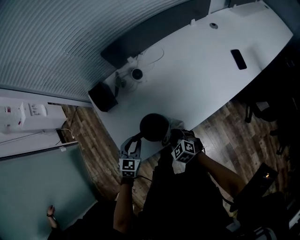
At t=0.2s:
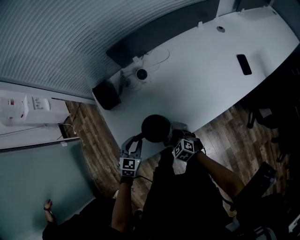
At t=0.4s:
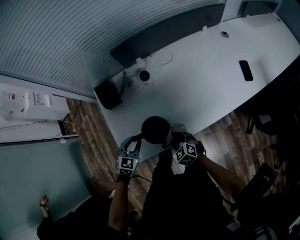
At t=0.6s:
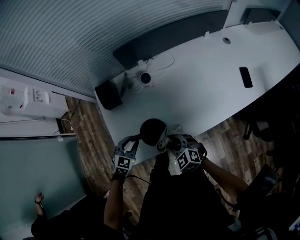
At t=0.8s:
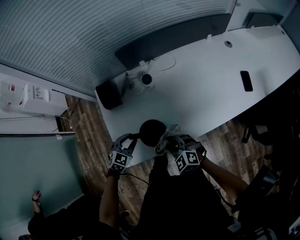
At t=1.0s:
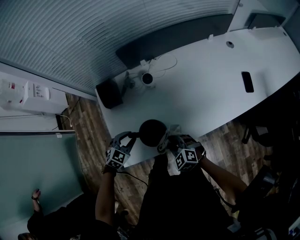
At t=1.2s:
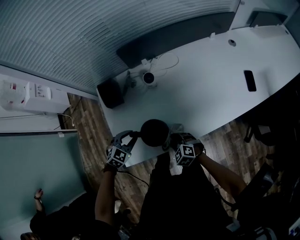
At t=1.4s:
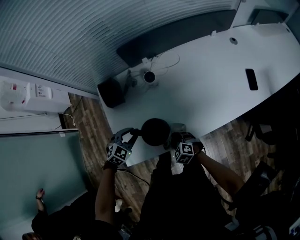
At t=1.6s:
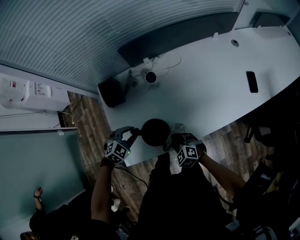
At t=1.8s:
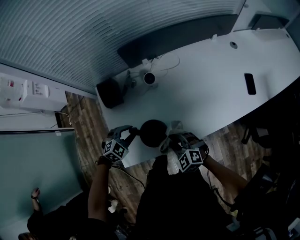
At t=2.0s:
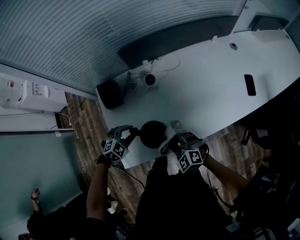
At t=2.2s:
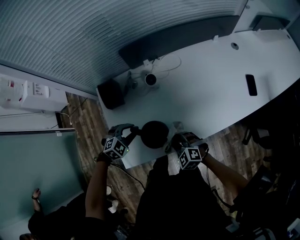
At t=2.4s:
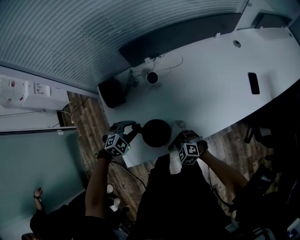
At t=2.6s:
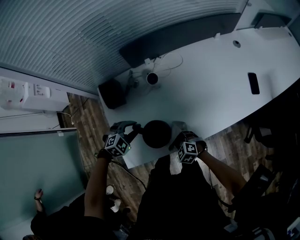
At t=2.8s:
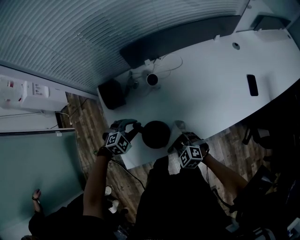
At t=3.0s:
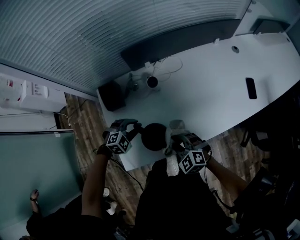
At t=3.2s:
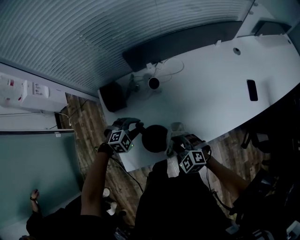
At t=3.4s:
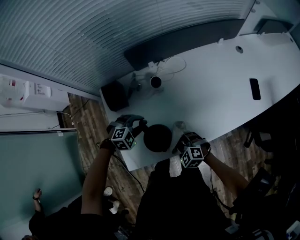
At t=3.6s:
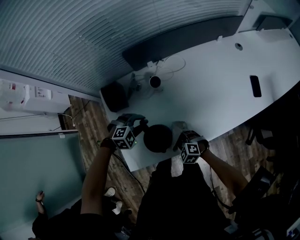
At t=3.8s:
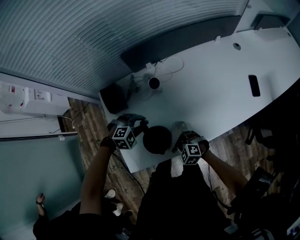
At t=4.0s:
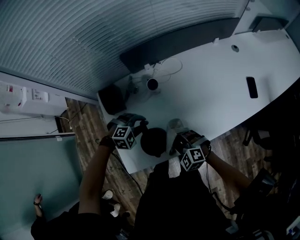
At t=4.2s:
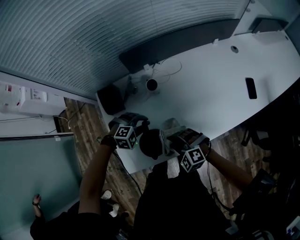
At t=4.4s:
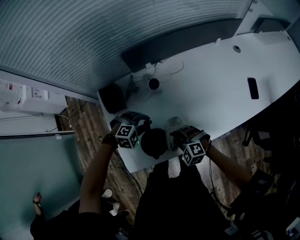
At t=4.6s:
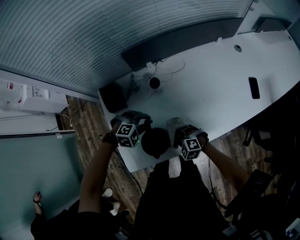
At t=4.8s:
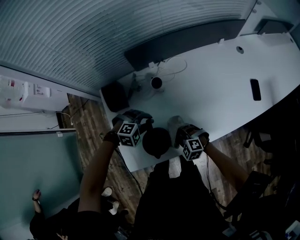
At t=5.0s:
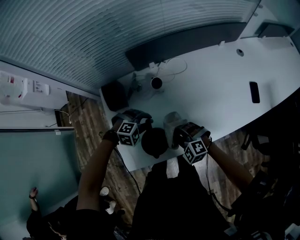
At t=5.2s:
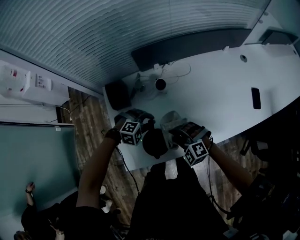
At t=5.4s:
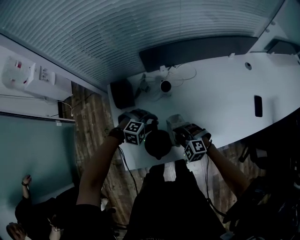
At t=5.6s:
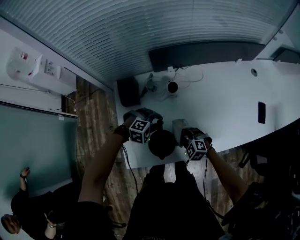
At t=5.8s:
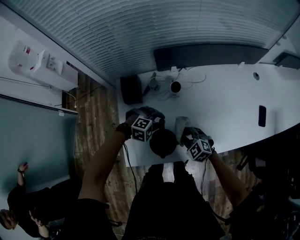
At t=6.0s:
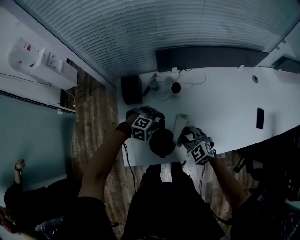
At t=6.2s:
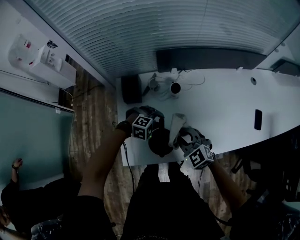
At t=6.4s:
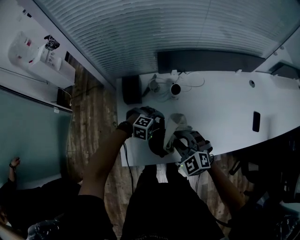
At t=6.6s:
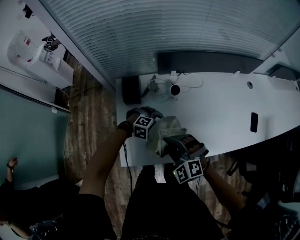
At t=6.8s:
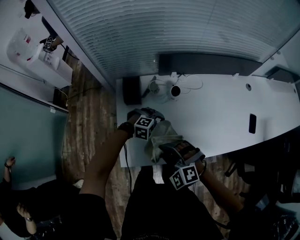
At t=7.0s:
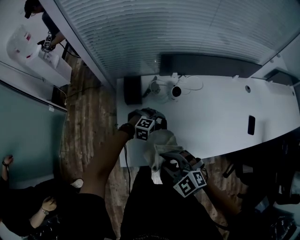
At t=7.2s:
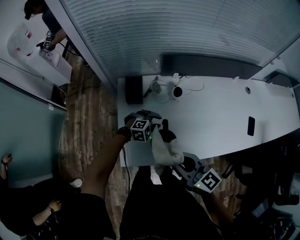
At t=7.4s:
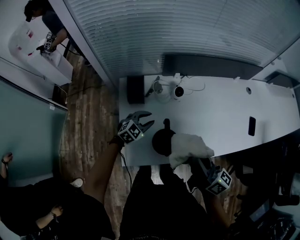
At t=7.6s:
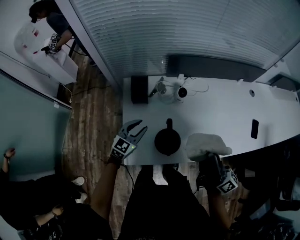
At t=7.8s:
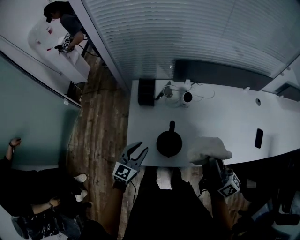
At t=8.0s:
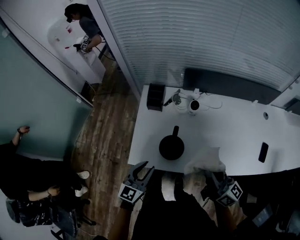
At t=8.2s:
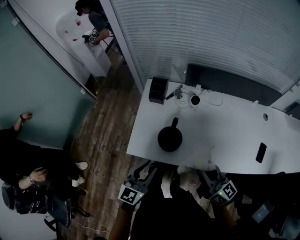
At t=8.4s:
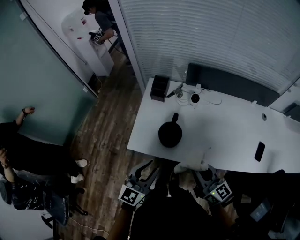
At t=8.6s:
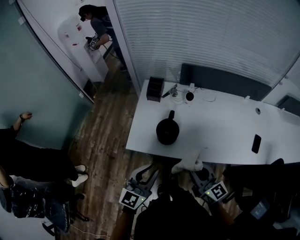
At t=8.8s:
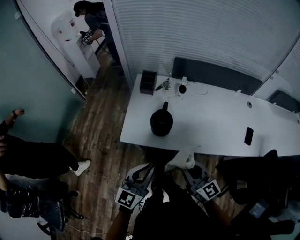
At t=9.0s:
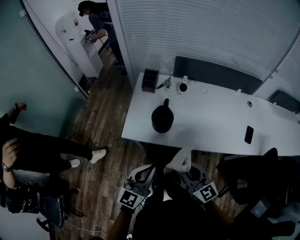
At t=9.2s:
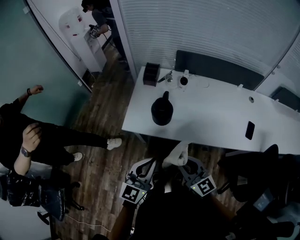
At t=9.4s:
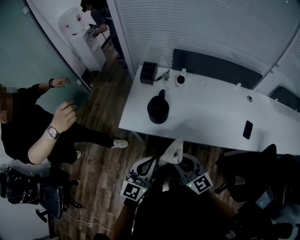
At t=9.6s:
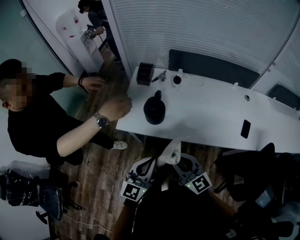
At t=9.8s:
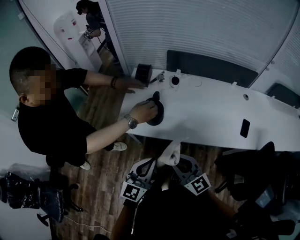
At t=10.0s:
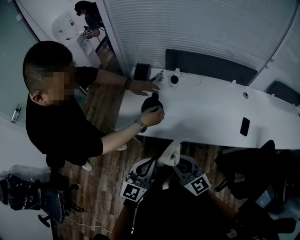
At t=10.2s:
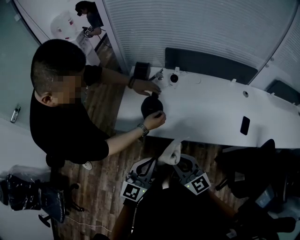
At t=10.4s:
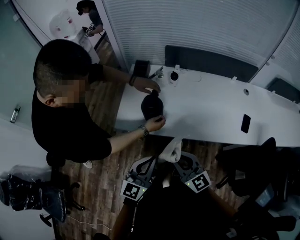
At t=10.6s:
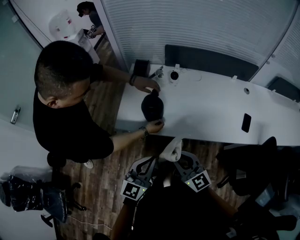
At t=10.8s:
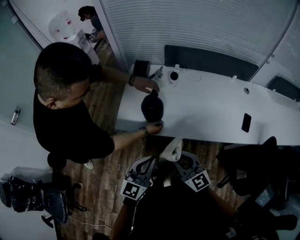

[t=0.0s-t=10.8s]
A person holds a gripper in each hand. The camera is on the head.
t=0.0s to t=1.6s: The right gripper swings up and down, roughly 10 cm each way, with 2 reversals; the left gripper travels forward by about 5 cm, and changes its angle by about 30 degrees.
t=1.6s to t=3.0s: The right gripper moves up and down over approximately 10 cm, changing direction 2 times. The left gripper ends up roughly 5 cm from where it was.
t=3.0s to t=4.6s: The right gripper moves up and down over about 15 cm, changing direction 2 times.
t=4.6s to t=6.2s: The right gripper swings up and down, approximately 15 cm each way, with 2 reversals, and changes its angle by about 30 degrees.
t=6.2s to t=7.8s: The left gripper moves approximately 20 cm, and tips its fingers upward by some 40 degrees, while the right gripper heads upward, covering approximately 15 cm, and points its fingers roughly 50 degrees further upward.
t=7.8s to t=9.2s: The left gripper shifts roughly 35 cm backward and upward, rotates approximately 20 degrees, and closes; the right gripper heads backward, covering approximately 25 cm, and turns by some 50 degrees.
t=9.2s to t=10.8s: The grippers make only small movements.

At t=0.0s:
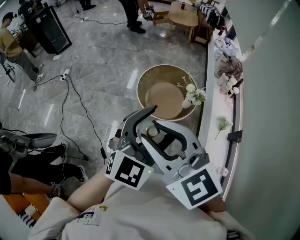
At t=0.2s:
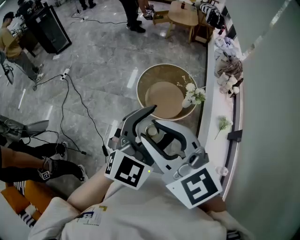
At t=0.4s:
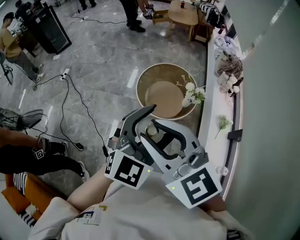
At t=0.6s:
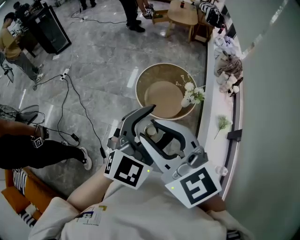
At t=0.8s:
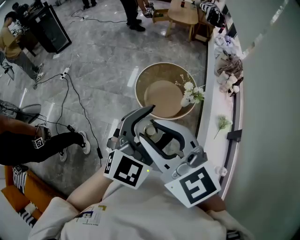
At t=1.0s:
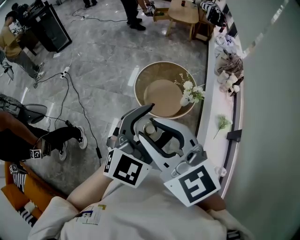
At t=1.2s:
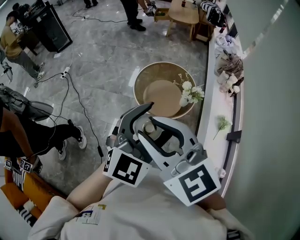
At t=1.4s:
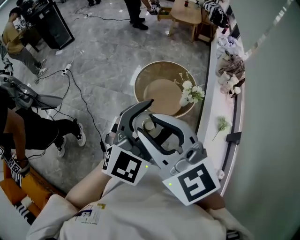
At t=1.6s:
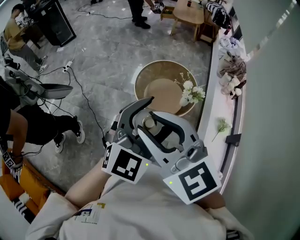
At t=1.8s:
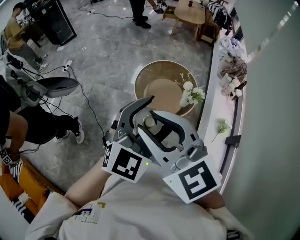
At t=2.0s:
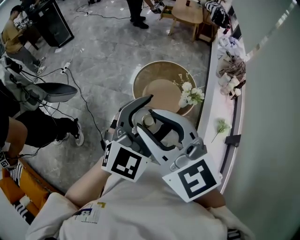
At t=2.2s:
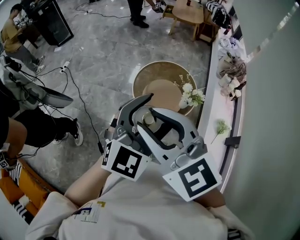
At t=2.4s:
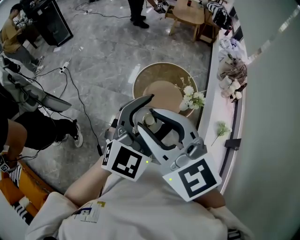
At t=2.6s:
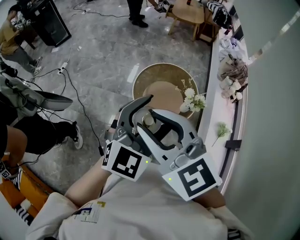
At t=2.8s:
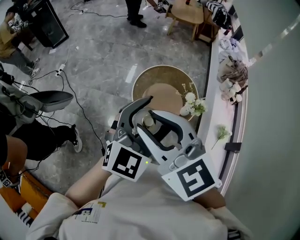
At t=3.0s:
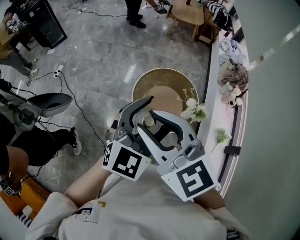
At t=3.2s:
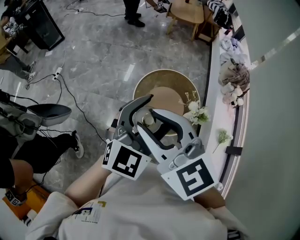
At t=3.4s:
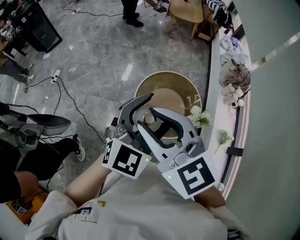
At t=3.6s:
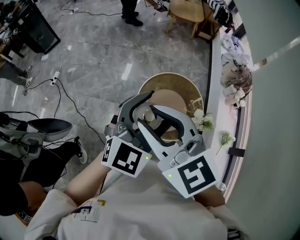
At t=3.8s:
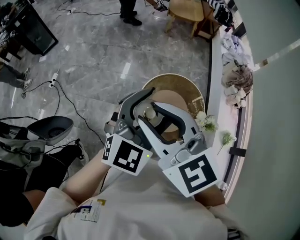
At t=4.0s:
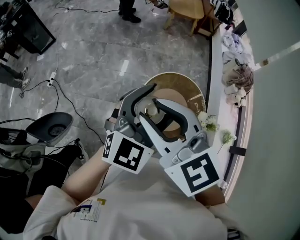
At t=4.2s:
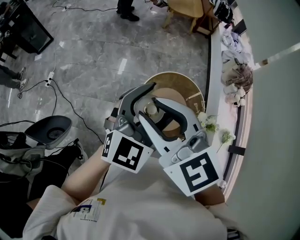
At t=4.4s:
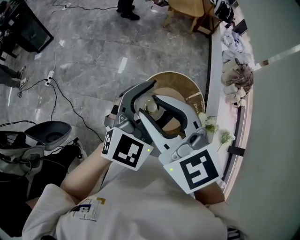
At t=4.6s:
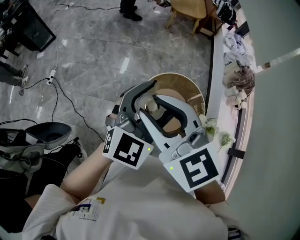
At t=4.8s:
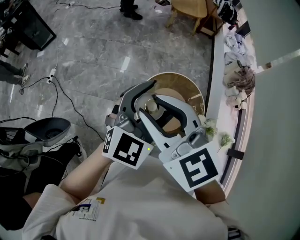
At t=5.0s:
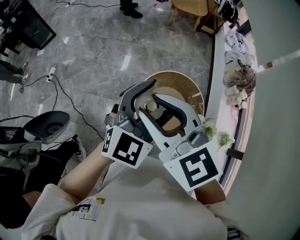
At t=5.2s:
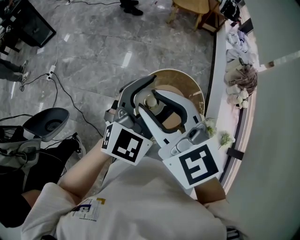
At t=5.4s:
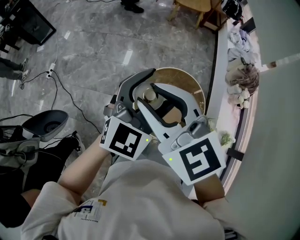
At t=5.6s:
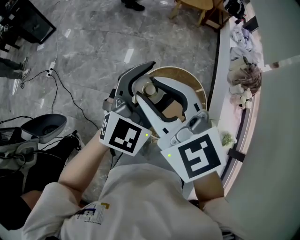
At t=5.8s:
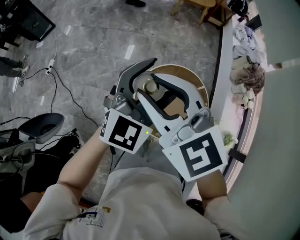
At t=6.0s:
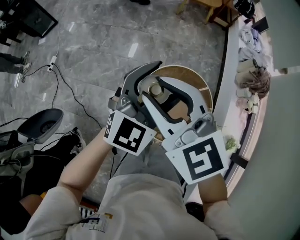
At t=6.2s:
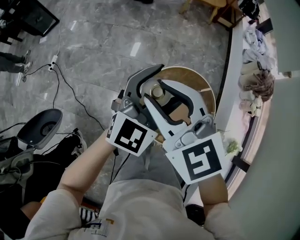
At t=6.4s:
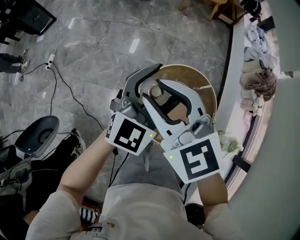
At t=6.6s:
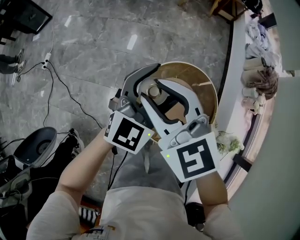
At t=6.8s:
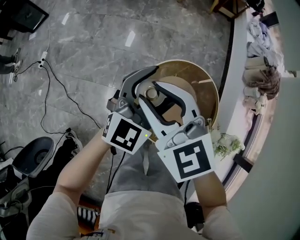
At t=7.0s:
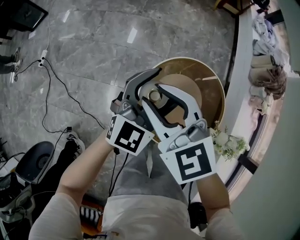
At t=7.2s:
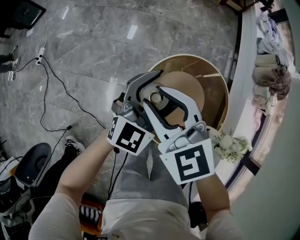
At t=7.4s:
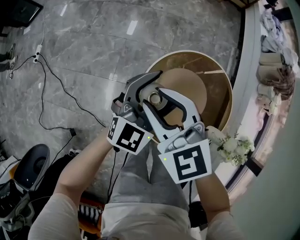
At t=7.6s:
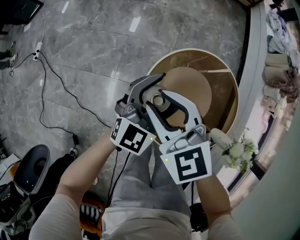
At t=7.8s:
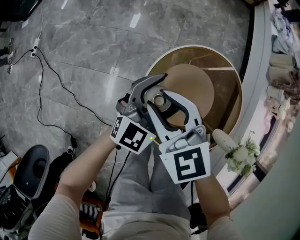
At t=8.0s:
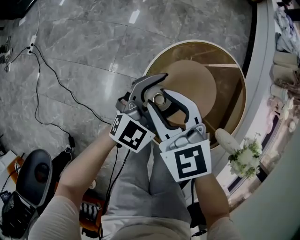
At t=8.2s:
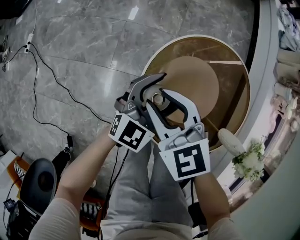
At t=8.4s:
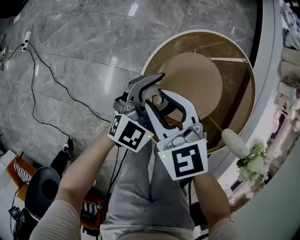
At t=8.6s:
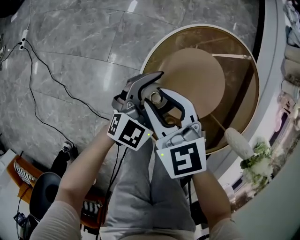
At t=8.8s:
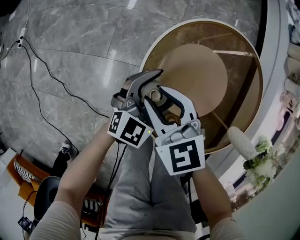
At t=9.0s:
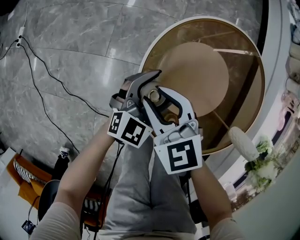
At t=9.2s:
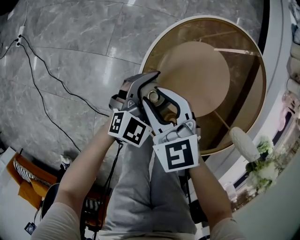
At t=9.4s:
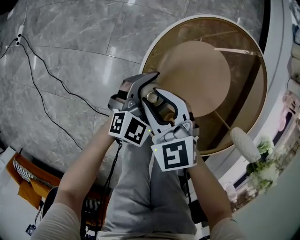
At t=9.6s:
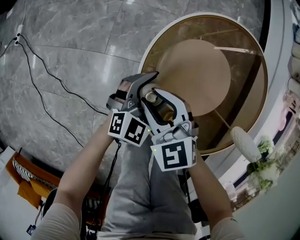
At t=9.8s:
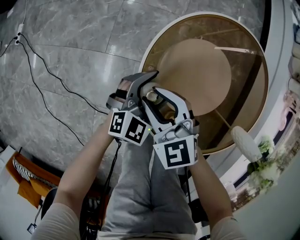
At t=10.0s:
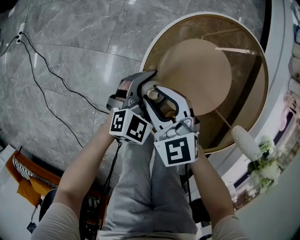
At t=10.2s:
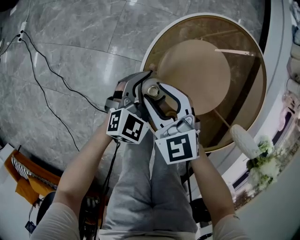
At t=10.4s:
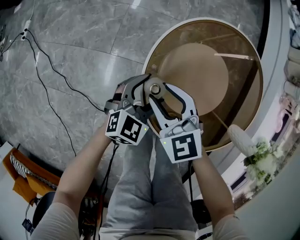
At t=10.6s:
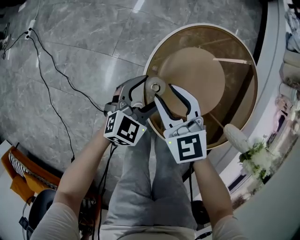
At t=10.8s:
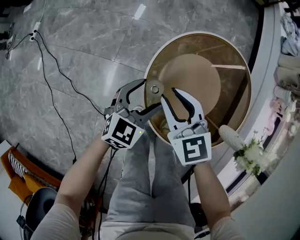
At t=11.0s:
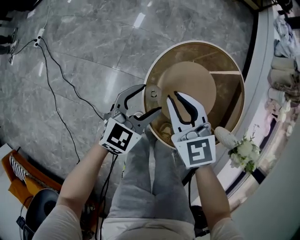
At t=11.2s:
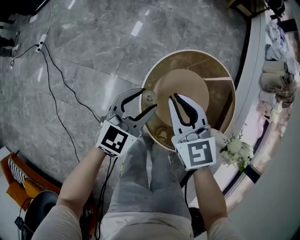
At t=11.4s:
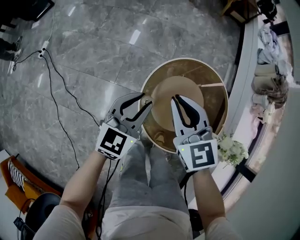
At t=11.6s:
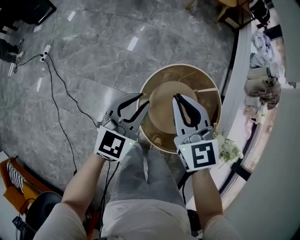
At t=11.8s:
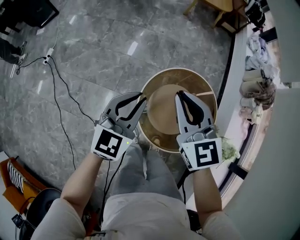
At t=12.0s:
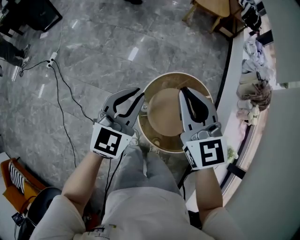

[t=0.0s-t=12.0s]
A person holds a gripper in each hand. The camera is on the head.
t=0.0s to t=1.6s: The two grippers go some 5 cm to the right.
t=1.6s to t=3.0s: Both grippers travel together forward, about 20 cm.
t=3.0s to t=4.4s: The grippers both shift forward and to the left by some 25 cm.
t=4.4s to t=6.0s: The grippers both shift forward, downward and to the right by some 15 cm.
t=6.0s to t=7.6s: Both grippers travel together downward, approximately 35 cm.
t=7.6s to t=9.0s: Both grippers travel together downward, about 25 cm.
t=9.0s to t=10.4s: The left gripper moves about 5 cm.
t=10.4s to t=12.0s: Both grippers travel together upward, approximately 50 cm. The left gripper rotates some 30 degrees, and closes up. Meanwhile the right gripper swivels about 30 degrees, and closes its fingers.

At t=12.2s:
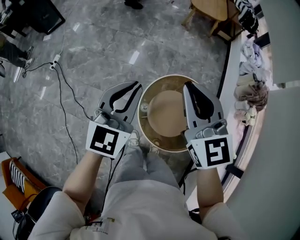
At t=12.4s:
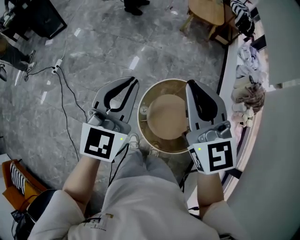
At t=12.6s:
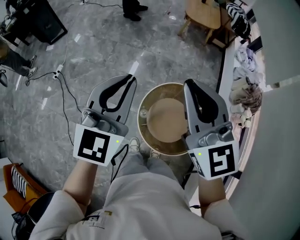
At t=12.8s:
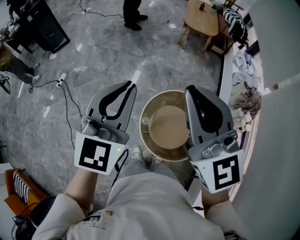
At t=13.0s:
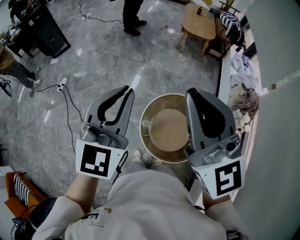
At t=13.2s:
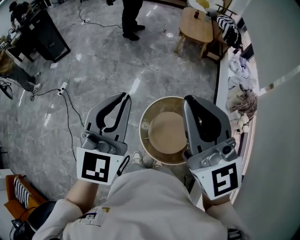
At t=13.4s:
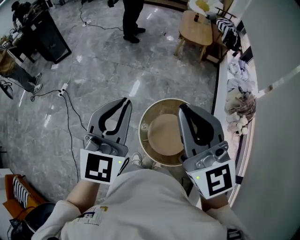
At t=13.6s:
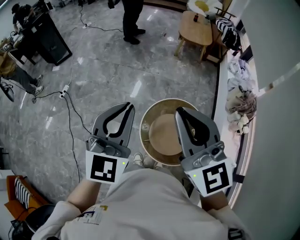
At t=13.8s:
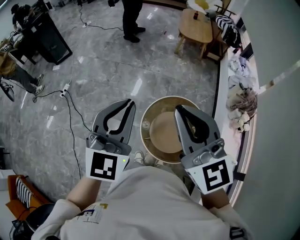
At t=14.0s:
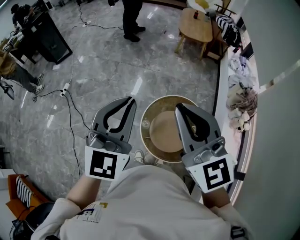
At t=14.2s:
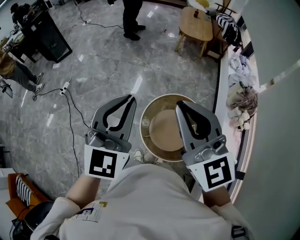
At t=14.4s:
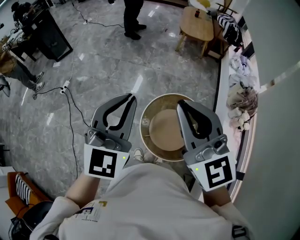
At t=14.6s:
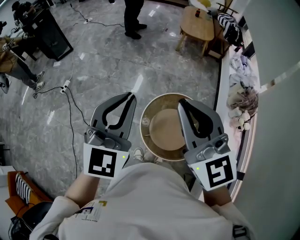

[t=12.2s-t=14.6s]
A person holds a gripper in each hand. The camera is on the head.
t=12.2s to t=13.4s: Both grippers move upward and backward, about 20 cm.
t=13.4s to t=14.6s: The grippers make only small movements.
